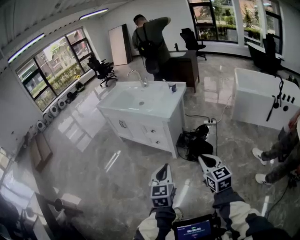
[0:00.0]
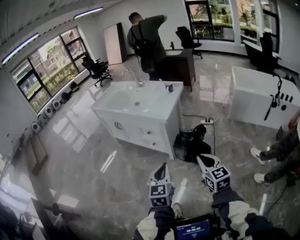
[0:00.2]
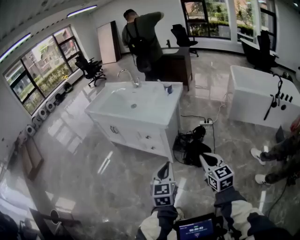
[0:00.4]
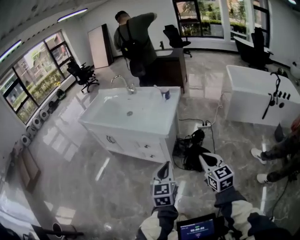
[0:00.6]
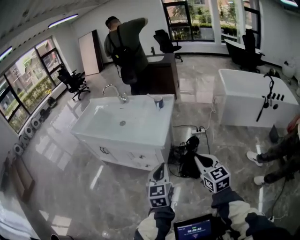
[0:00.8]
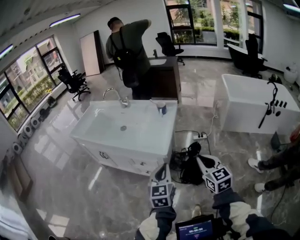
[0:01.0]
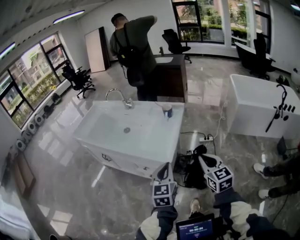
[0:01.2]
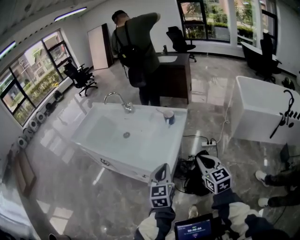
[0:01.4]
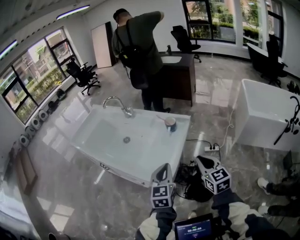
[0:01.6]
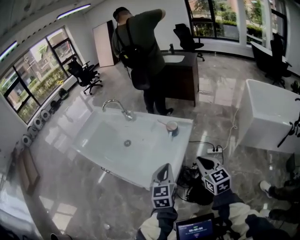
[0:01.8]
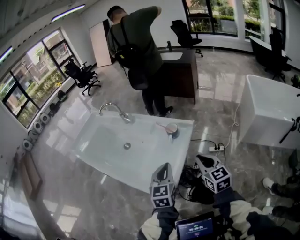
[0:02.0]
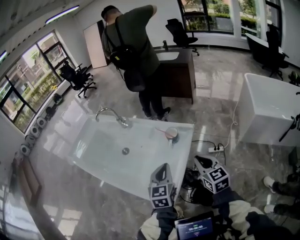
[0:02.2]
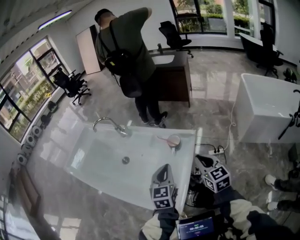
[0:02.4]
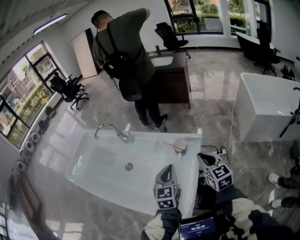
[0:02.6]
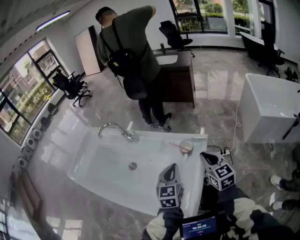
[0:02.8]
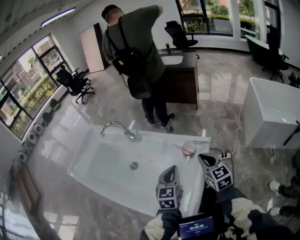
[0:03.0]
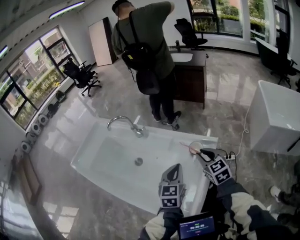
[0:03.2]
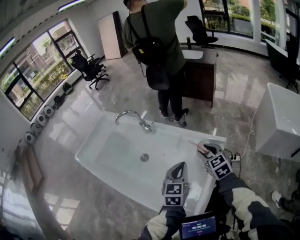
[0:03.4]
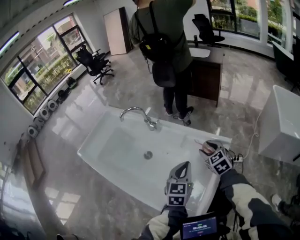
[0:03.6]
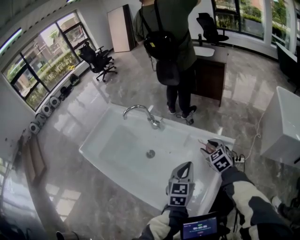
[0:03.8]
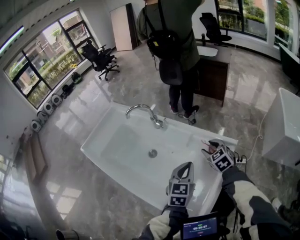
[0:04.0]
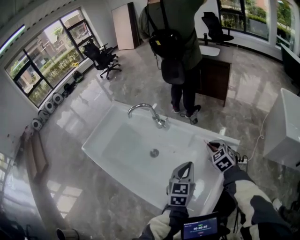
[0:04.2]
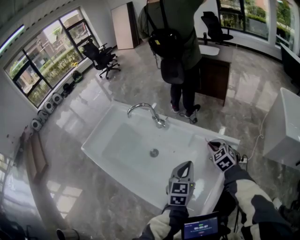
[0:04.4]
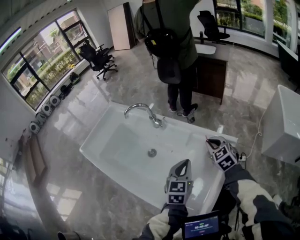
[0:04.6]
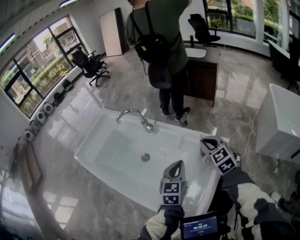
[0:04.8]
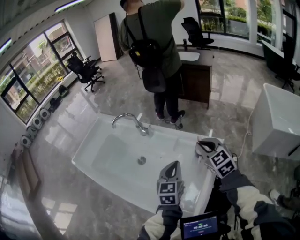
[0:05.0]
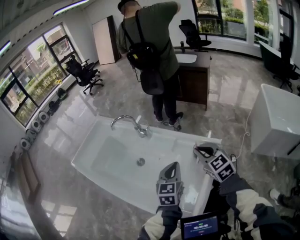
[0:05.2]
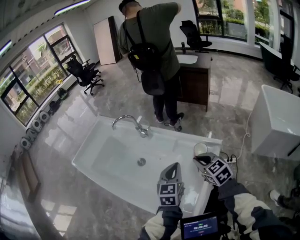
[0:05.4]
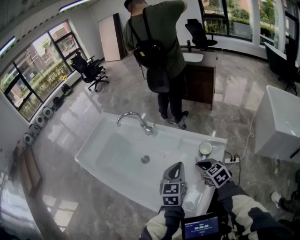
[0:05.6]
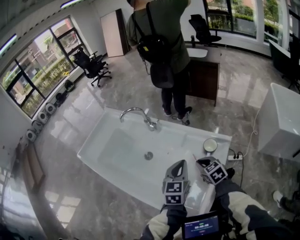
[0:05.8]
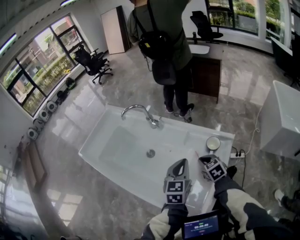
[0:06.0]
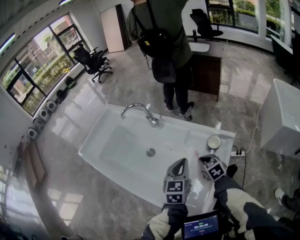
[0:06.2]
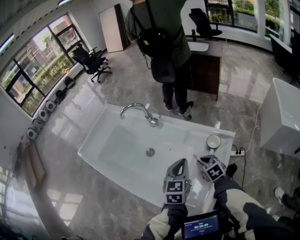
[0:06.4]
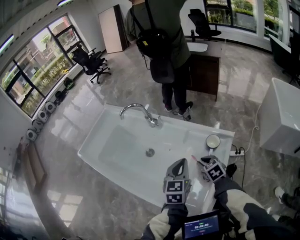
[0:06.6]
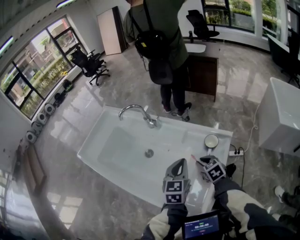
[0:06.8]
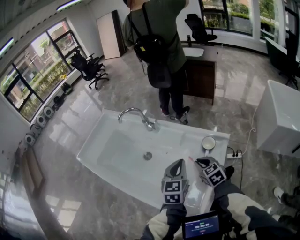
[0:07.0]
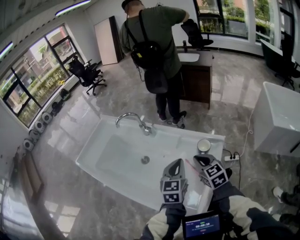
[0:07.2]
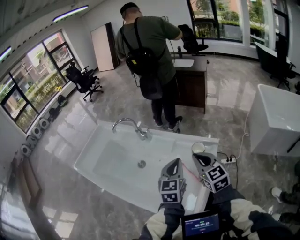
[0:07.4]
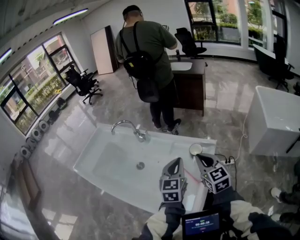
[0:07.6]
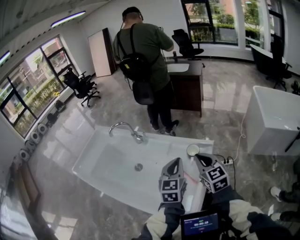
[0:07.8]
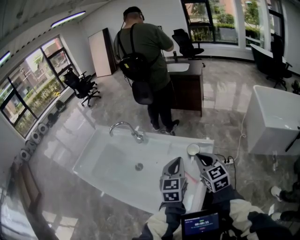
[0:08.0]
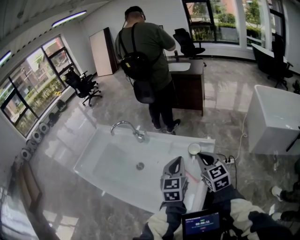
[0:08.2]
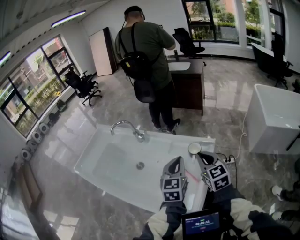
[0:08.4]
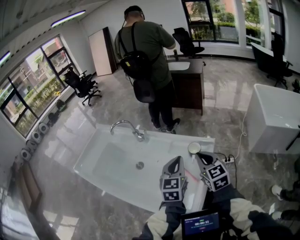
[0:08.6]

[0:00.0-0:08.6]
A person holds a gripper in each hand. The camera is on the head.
0:00.0 to 0:01.4: The pair of grippers is taken forward, roughly 50 cm.
0:01.4 to 0:02.8: Both grippers move forward, approximately 30 cm.
0:02.8 to 0:04.4: The left gripper shifts some 5 cm to the left. The right gripper goes some 20 cm forward, to the left and downward, swivels some 30 degrees, and opens, then closes again.
0:04.4 to 0:05.8: The right gripper shifts some 10 cm backward, and goes upward and returns, approximately 10 cm each way.
0:05.8 to 0:07.2: The right gripper heads upward, covering about 10 cm.
0:07.2 to 0:08.6: The left gripper changes place by about 5 cm; the right gripper goes roughly 10 cm upward and to the right.

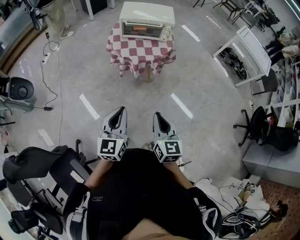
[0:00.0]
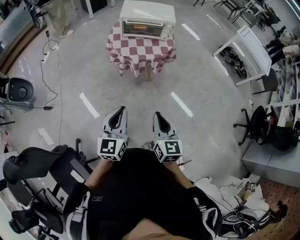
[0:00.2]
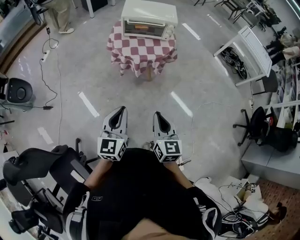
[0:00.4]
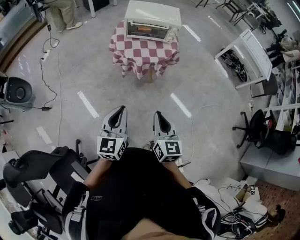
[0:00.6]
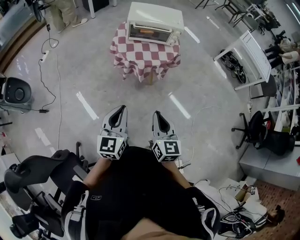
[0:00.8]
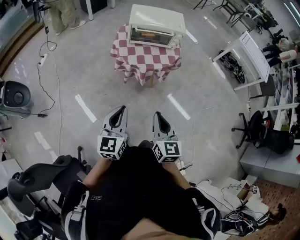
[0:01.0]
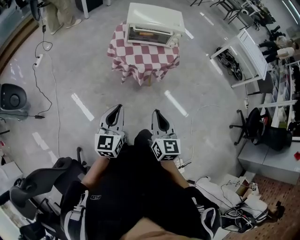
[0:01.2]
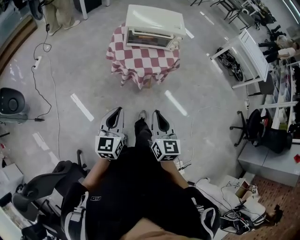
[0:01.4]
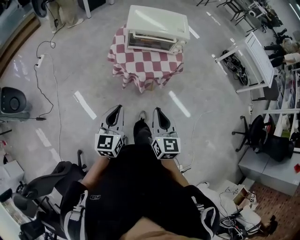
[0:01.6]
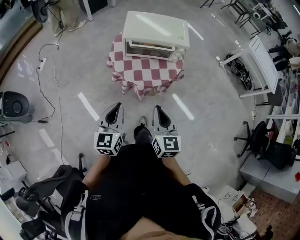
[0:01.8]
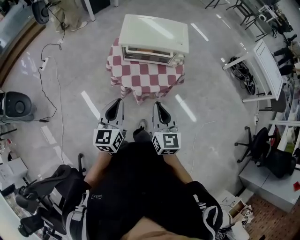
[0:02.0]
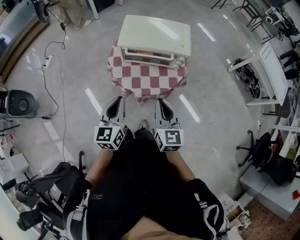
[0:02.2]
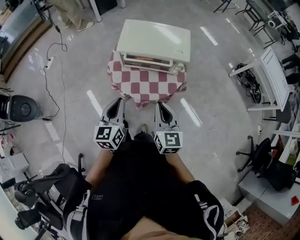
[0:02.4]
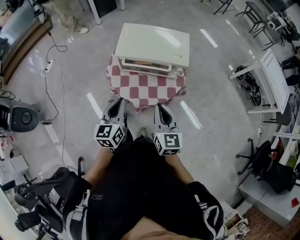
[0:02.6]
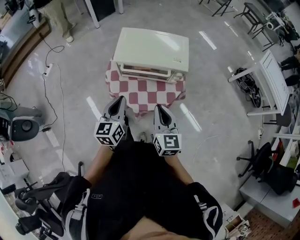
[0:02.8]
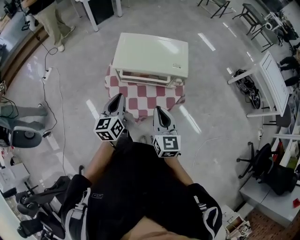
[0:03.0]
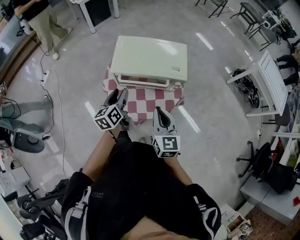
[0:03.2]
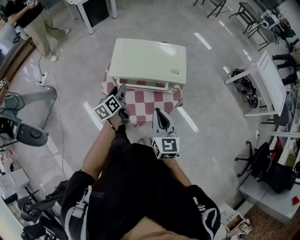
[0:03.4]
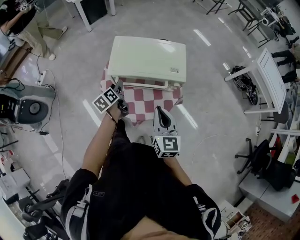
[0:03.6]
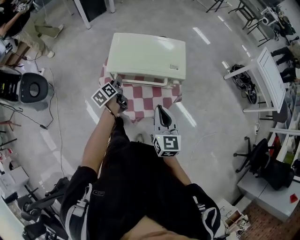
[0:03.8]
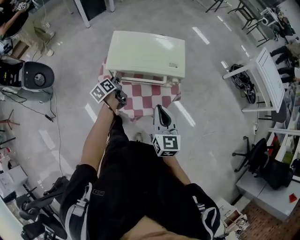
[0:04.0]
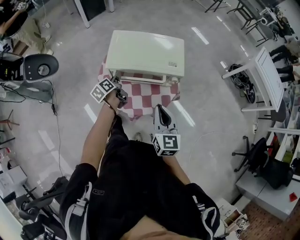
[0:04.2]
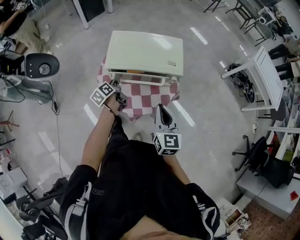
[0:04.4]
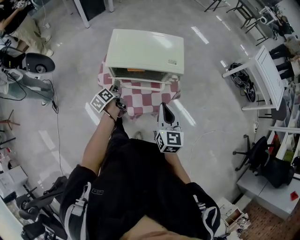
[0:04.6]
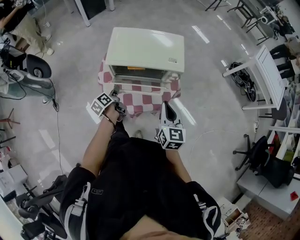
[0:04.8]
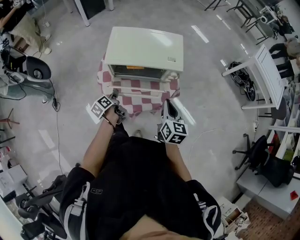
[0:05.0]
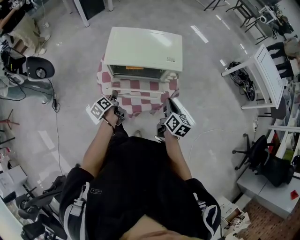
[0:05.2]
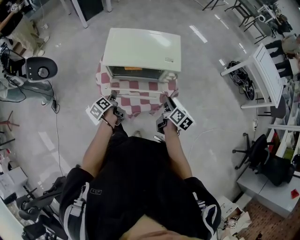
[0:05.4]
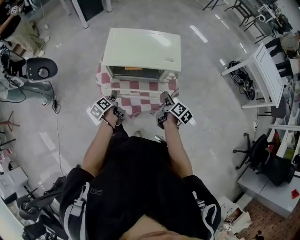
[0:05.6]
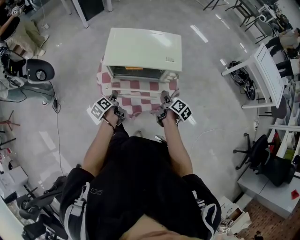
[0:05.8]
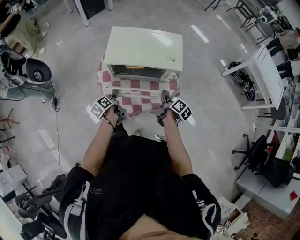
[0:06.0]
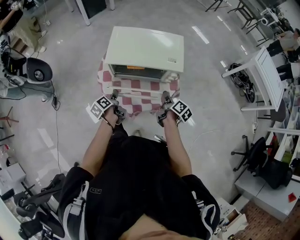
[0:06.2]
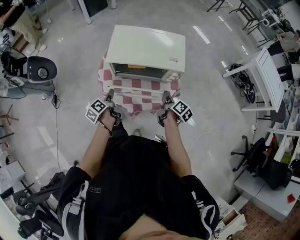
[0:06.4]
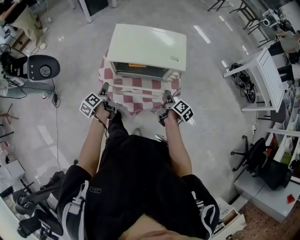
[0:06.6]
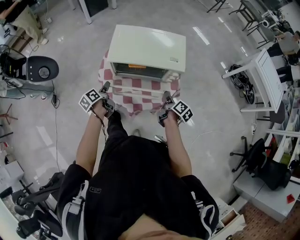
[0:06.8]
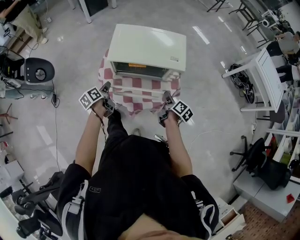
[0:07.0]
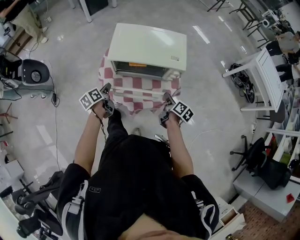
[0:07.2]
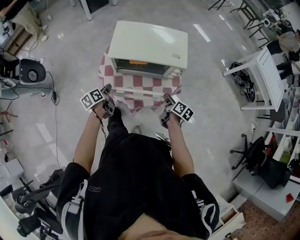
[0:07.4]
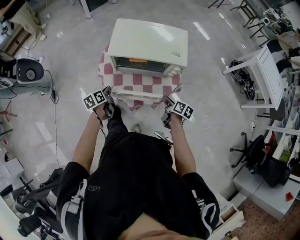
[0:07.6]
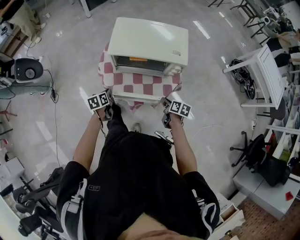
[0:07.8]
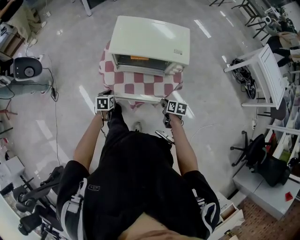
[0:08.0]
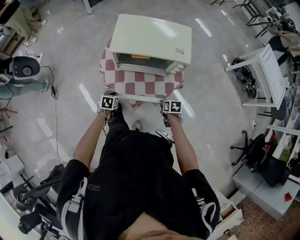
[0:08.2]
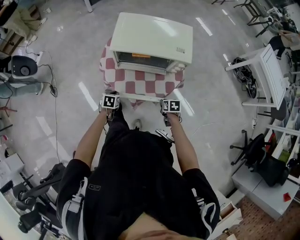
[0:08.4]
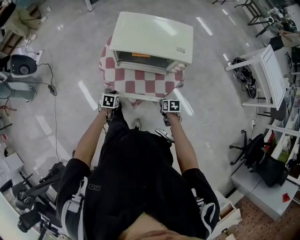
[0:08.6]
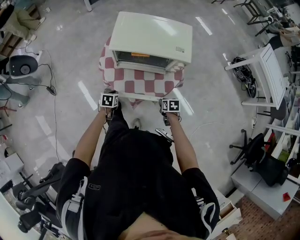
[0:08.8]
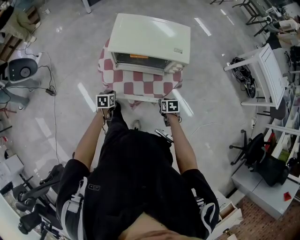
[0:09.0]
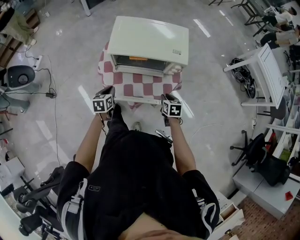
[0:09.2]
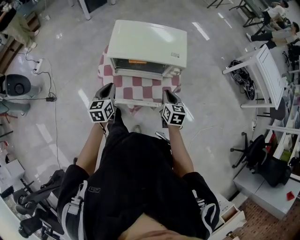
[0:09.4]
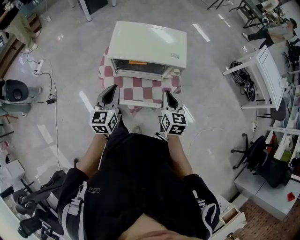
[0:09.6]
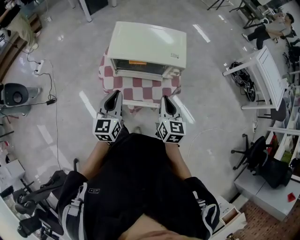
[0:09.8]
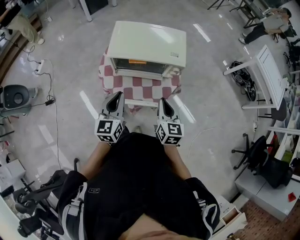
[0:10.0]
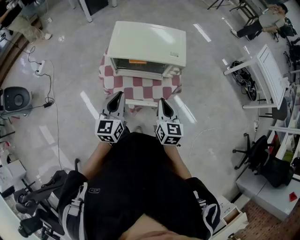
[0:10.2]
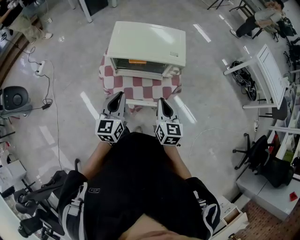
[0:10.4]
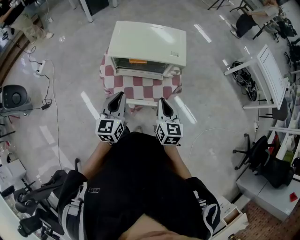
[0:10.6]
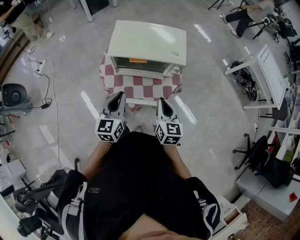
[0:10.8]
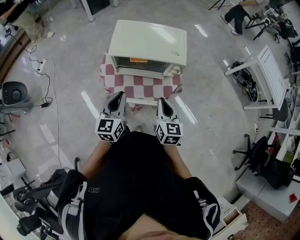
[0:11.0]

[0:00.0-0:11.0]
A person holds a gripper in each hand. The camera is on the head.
0:00.0 to 0:01.6: The grippers both shift forward and to the left by roughly 25 cm.
0:01.6 to 0:03.2: Both grippers travel together forward, some 35 cm. The left gripper turns by approximately 30 degrees, and opens.
0:03.2 to 0:04.8: The left gripper travels downward by about 15 cm, and turns by about 30 degrees. The right gripper travels to the right by about 5 cm.
0:04.8 to 0:06.2: The right gripper is displaced downward and forward by roughly 15 cm, and twists some 60 degrees clockwise, seen from behind.
0:06.2 to 0:07.8: The left gripper changes place by roughly 5 cm, changes its angle by roughly 40 degrees, and closes its fingers, while the right gripper moves downward and backward, some 10 cm, and turns by some 30 degrees.
0:07.8 to 0:09.4: The two grippers go roughly 15 cm upward. The left gripper swivels roughly 30 degrees. Meanwhile the right gripper rotates roughly 40 degrees.
0:09.4 to 0:11.0: The left gripper travels upward, backward and to the right by roughly 15 cm. Meanwhile the right gripper heads upward and backward, covering some 10 cm.

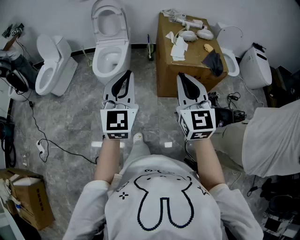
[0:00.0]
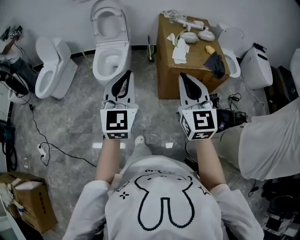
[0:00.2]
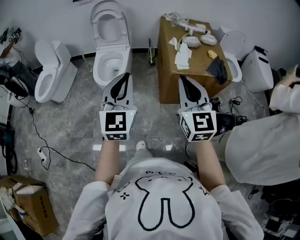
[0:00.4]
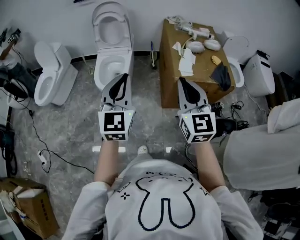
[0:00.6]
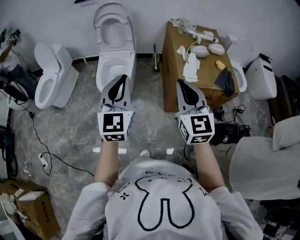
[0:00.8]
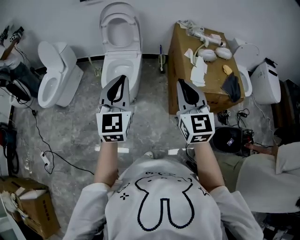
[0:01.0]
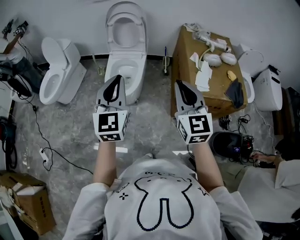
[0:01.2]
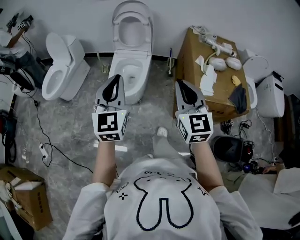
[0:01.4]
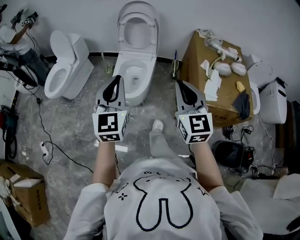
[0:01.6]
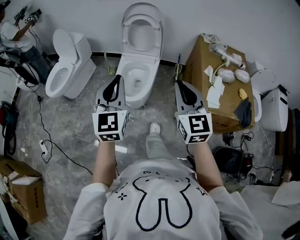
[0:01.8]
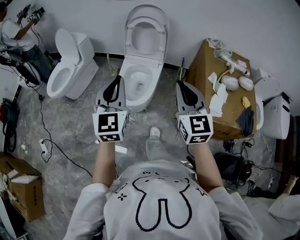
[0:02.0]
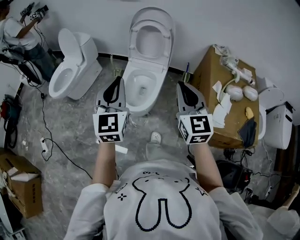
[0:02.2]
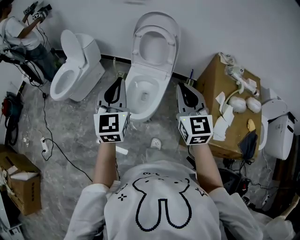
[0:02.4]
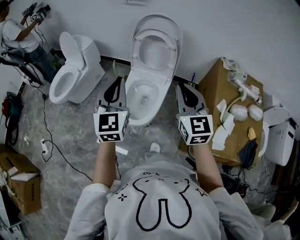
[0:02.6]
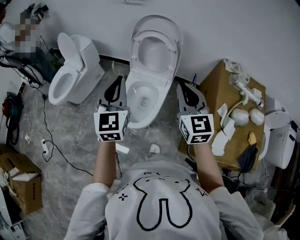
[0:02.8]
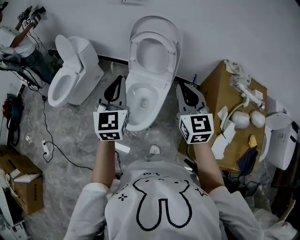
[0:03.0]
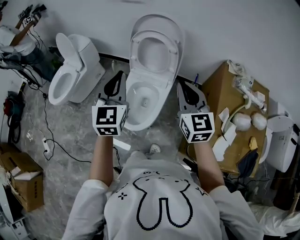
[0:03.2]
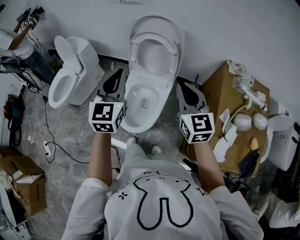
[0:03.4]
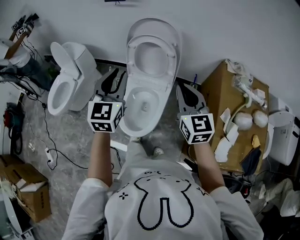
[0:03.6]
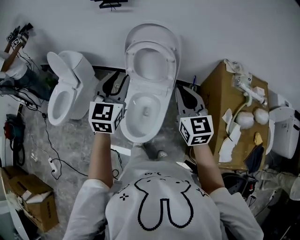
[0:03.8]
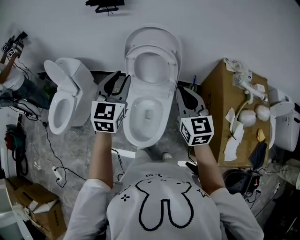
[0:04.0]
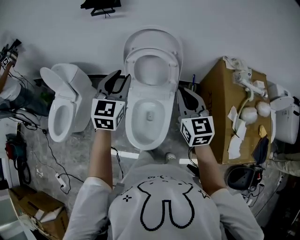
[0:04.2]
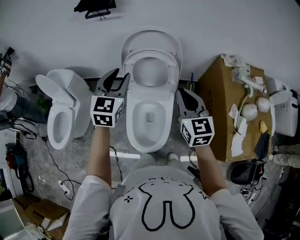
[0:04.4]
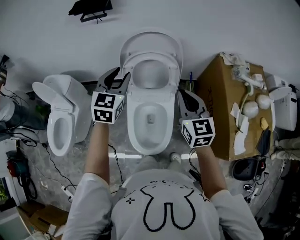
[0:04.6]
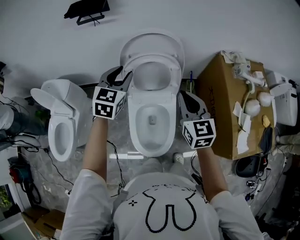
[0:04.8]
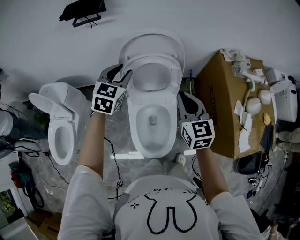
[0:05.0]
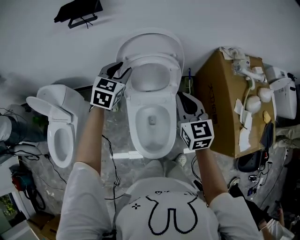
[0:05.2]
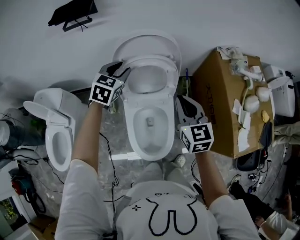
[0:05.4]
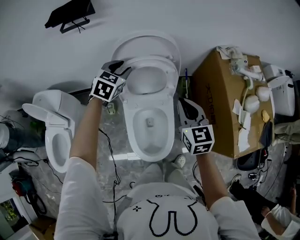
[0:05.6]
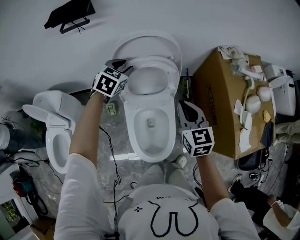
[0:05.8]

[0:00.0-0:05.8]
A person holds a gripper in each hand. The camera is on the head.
0:00.0 to 0:01.4: Both grippers travel together forward and to the left, about 30 cm.
0:01.4 to 0:02.8: Both grippers travel together forward, roughly 30 cm.
0:02.8 to 0:04.4: The right gripper heads forward, covering some 15 cm; the left gripper goes roughly 25 cm forward, changes its angle by some 30 degrees, and opens up.
0:04.4 to 0:05.8: The right gripper travels downward by about 10 cm. The left gripper travels forward and downward by roughly 20 cm, and turns by some 30 degrees.
